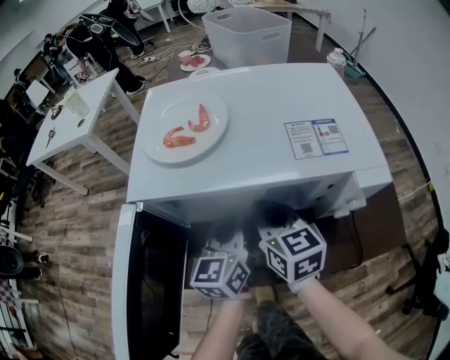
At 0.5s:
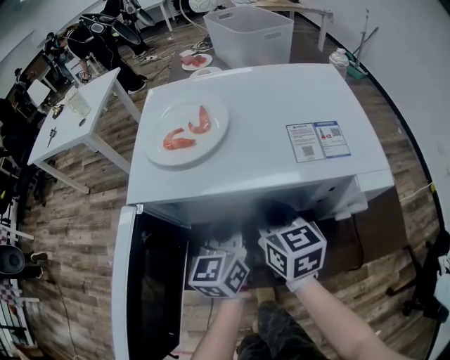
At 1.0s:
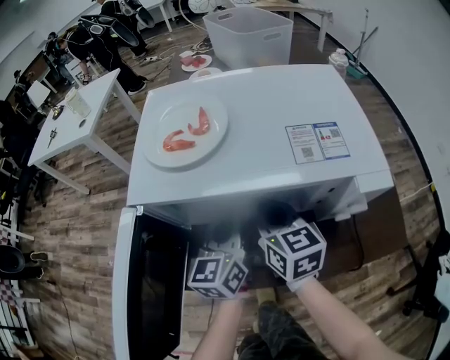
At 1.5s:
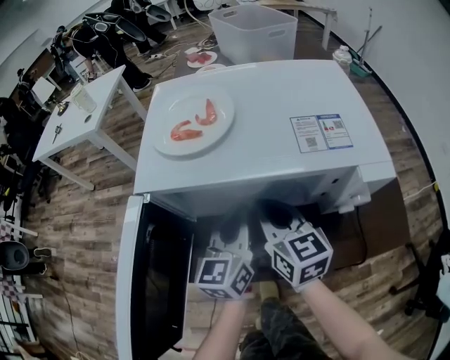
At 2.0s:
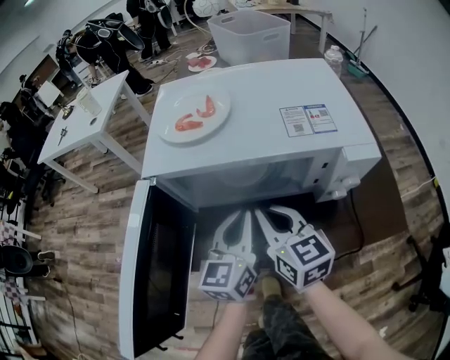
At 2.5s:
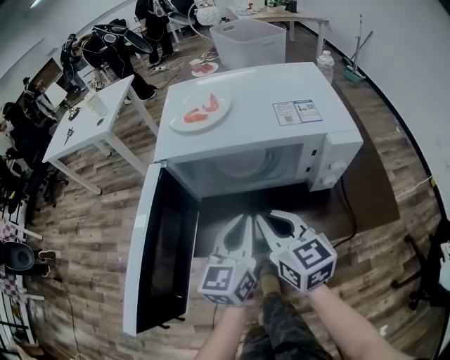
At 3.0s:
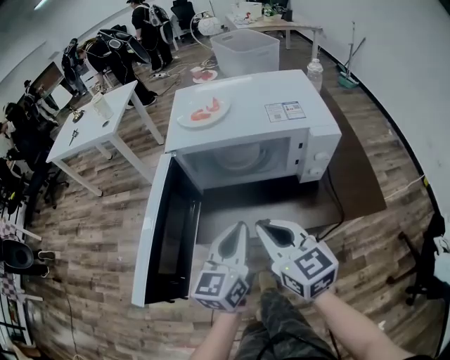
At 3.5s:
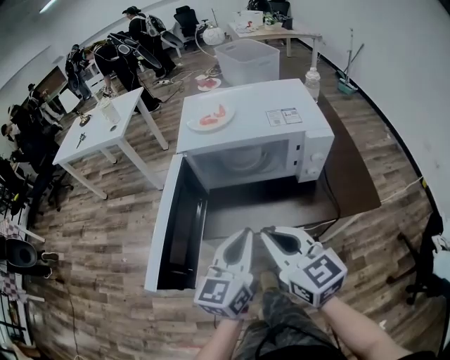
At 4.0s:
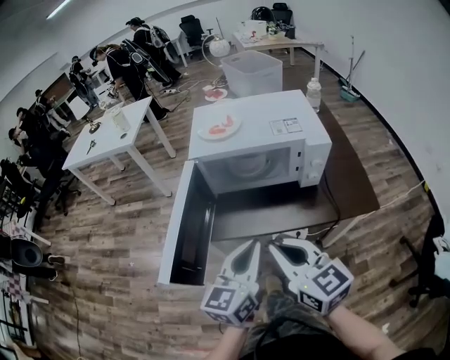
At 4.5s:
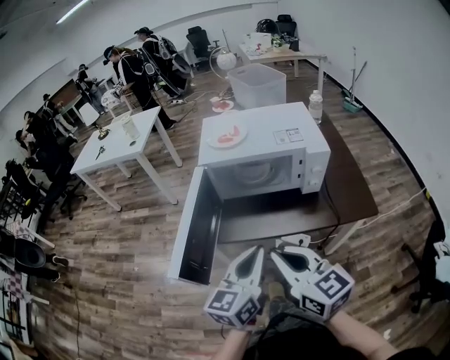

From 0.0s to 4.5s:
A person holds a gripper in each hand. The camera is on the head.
From 0.0s to 2.0s: The grippers both shift backward by roughly 5 cm.
From 2.0s to 4.5s: Both grippers travel together backward and upward, approximately 30 cm.

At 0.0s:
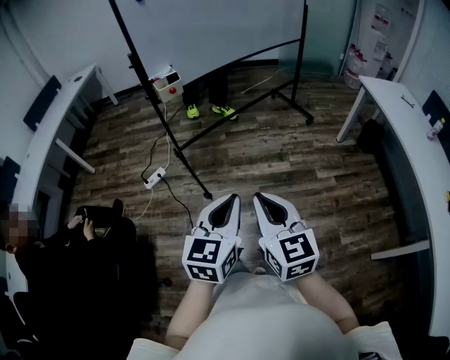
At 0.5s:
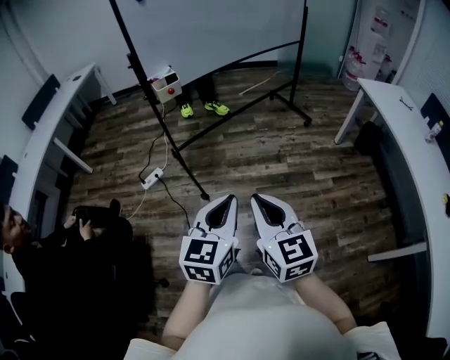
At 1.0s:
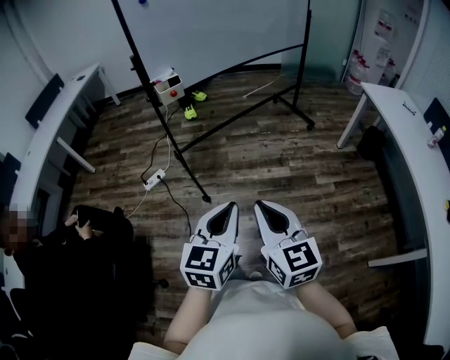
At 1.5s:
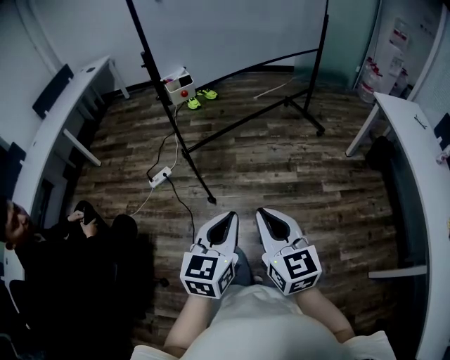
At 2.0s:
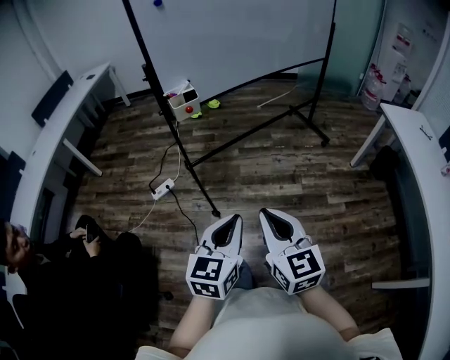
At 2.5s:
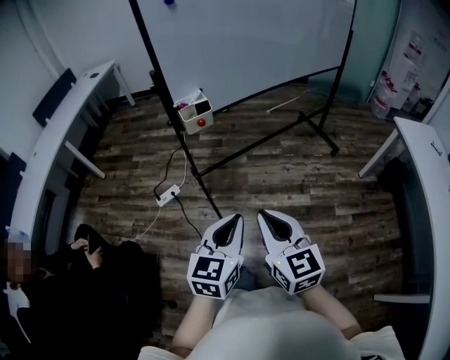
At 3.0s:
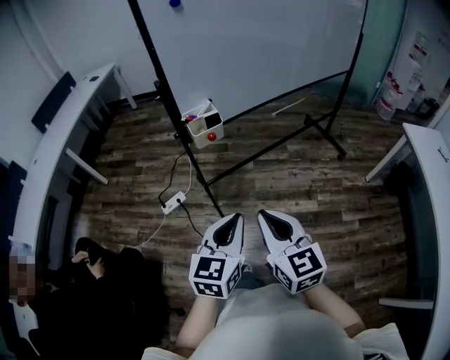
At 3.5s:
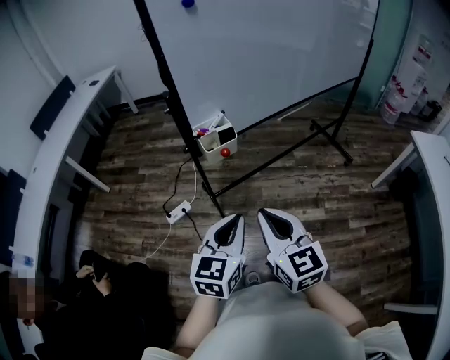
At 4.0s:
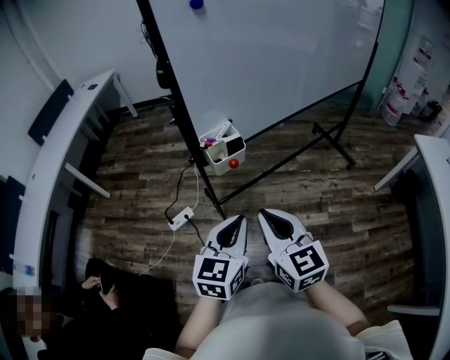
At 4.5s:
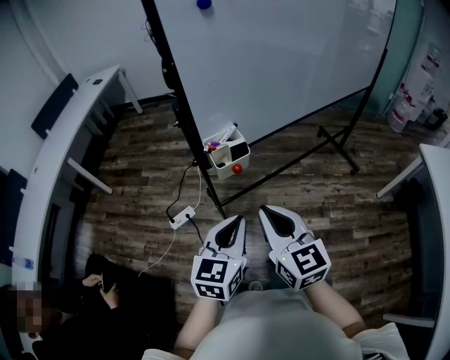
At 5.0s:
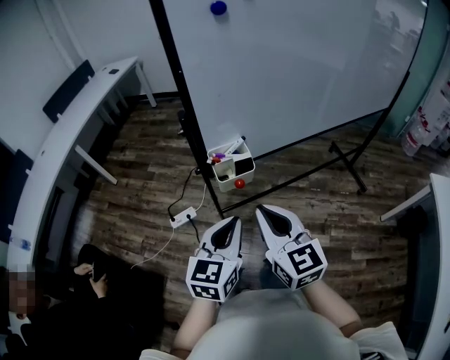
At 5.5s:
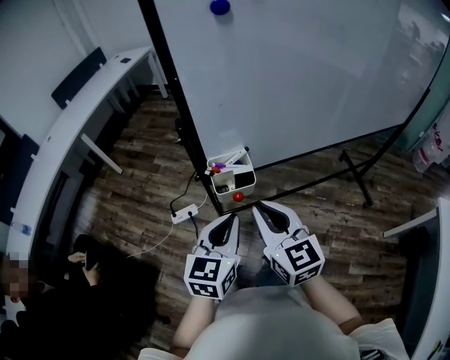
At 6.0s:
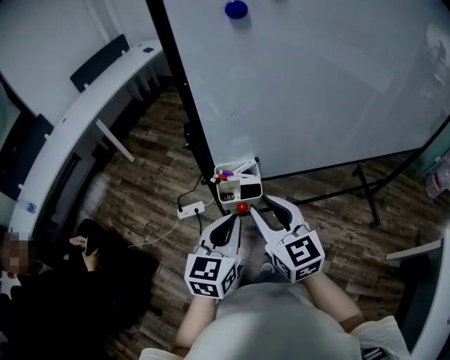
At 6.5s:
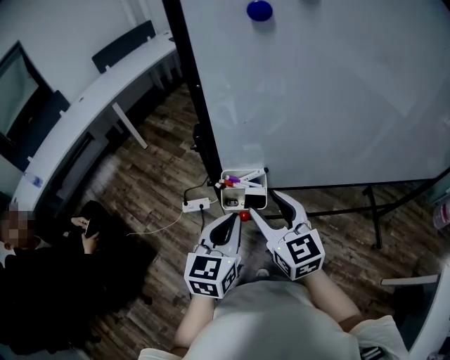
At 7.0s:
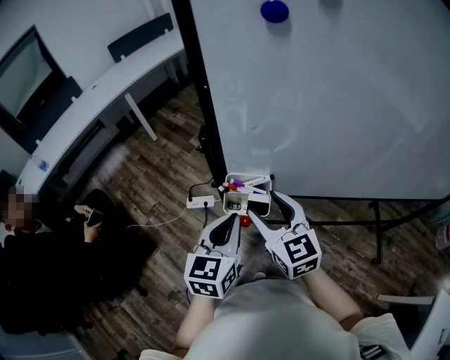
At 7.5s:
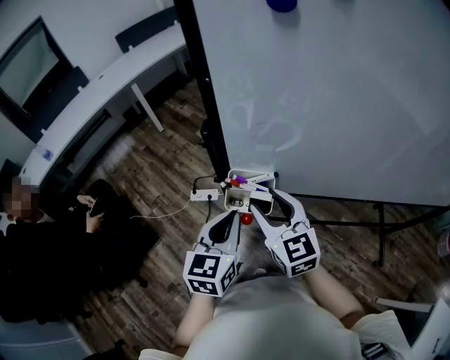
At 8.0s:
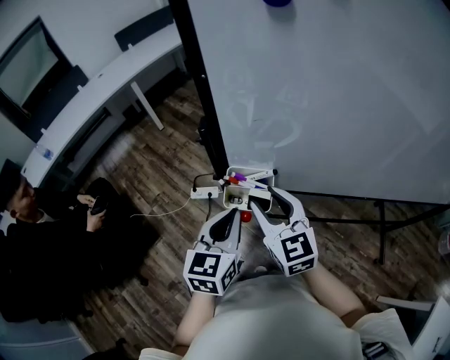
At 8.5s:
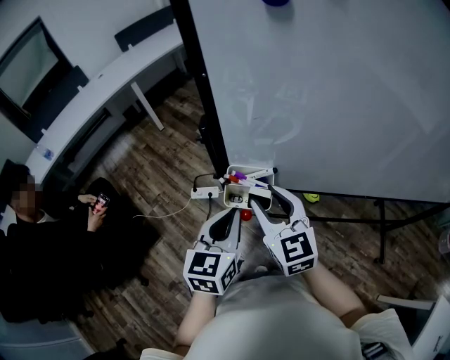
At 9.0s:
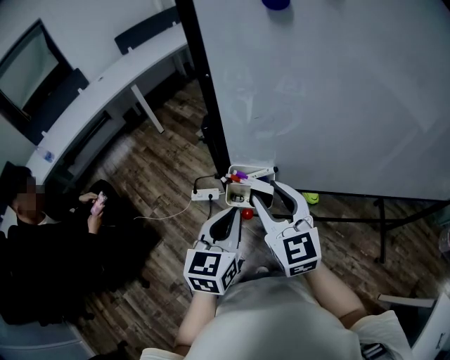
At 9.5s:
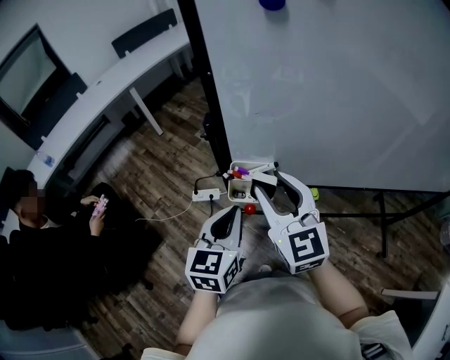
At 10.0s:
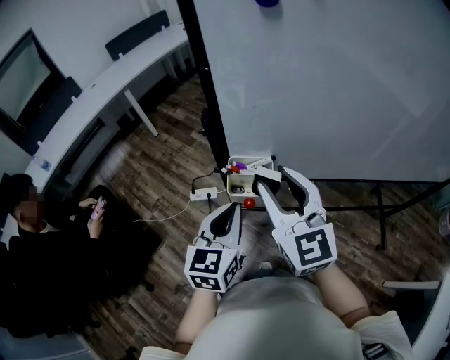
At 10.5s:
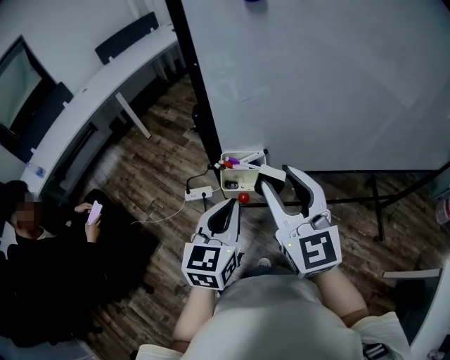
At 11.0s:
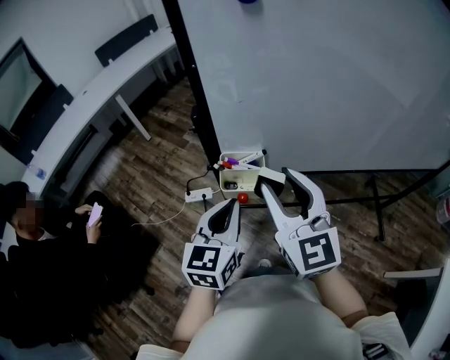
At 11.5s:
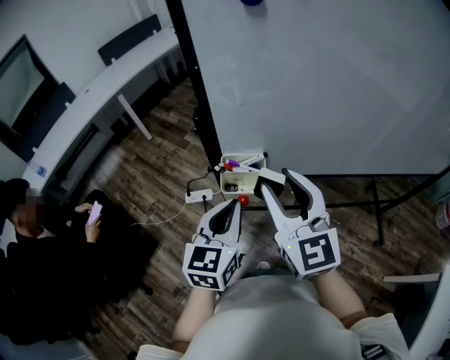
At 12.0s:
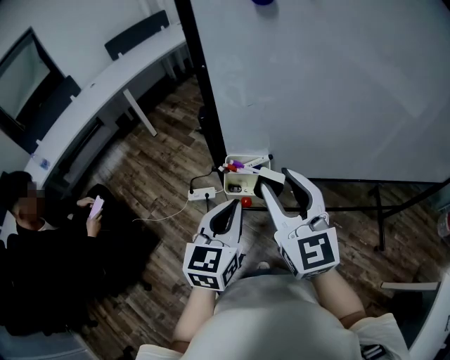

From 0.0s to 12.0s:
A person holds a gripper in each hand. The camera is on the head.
From 0.0s to 2.0s: The two grippers go approximately 10 cm forward.
From 2.0s to 4.0s: Both grippers travel together forward and to the left, some 35 cm.
From 4.0s to 6.0s: The two grippers go some 20 cm forward. The right gripper changes its angle by approximately 20 degrees, and opens its fingers, while the left gripper turns by approximately 20 degrees.
From 6.0s to 8.0s: The right gripper goes about 5 cm forward; the left gripper moves some 5 cm.
From 8.0s to 10.0s: The right gripper shifts roughly 10 cm upward.
From 10.0s to 12.0s: The grippers make only small movements.

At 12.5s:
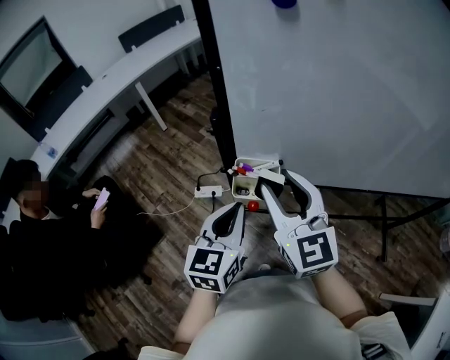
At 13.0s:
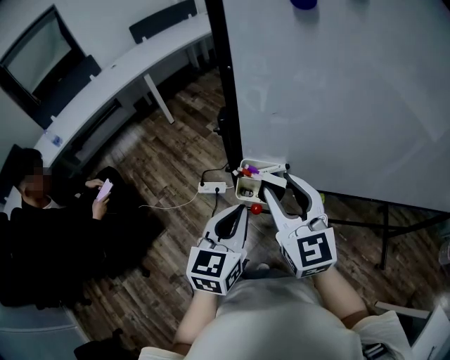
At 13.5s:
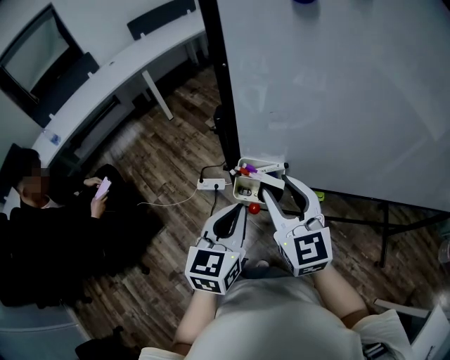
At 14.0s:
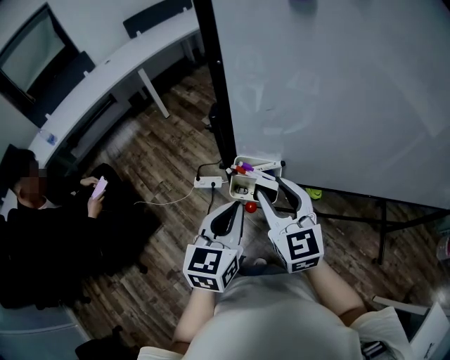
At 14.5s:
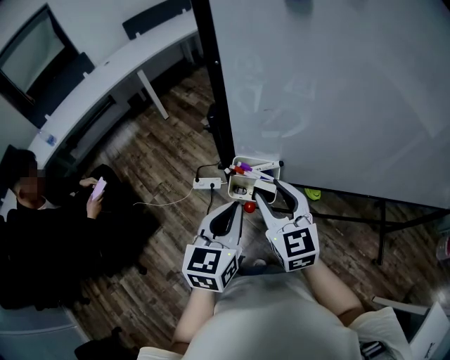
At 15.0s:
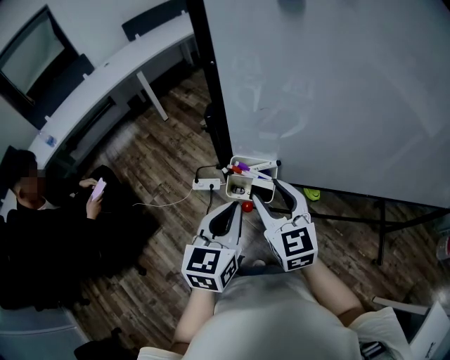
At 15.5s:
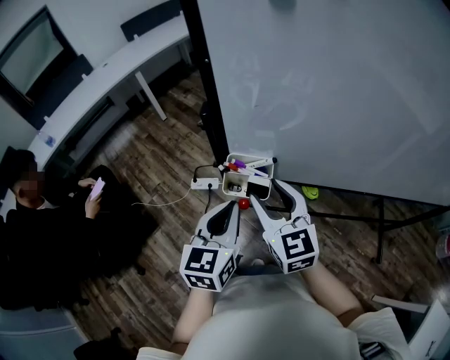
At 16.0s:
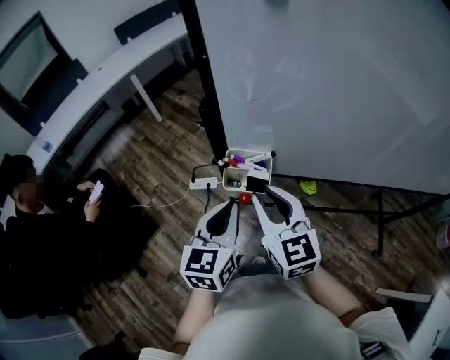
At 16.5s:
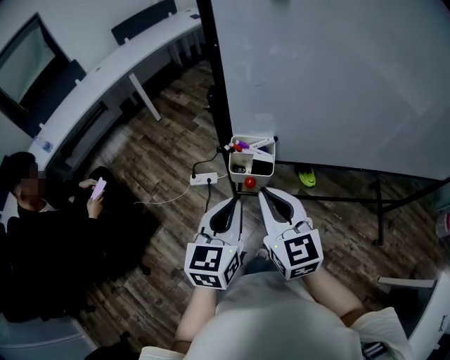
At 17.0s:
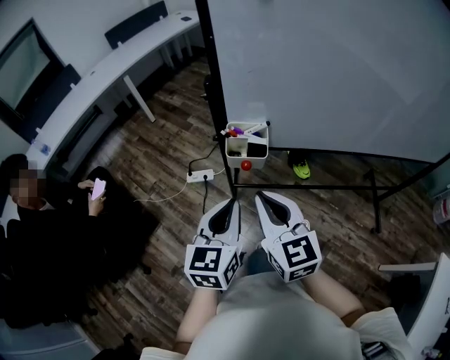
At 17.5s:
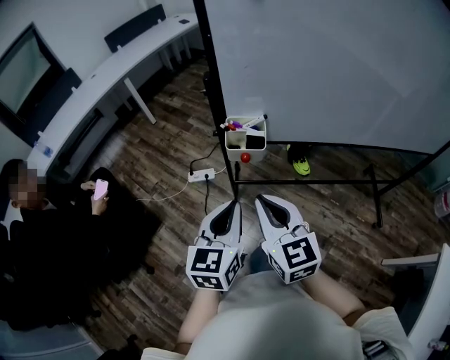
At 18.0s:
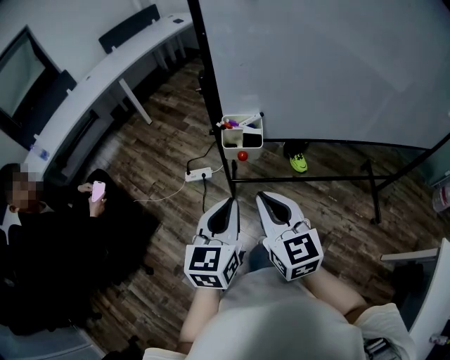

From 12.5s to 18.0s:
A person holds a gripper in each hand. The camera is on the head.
From 12.5s to 14.5s: The right gripper heads downward, covering about 10 cm.
From 14.5s to 16.0s: There are only small adjustments of the grippers.
From 16.0s to 18.0s: Both grippers move backward, approximately 15 cm. The right gripper closes its fingers.

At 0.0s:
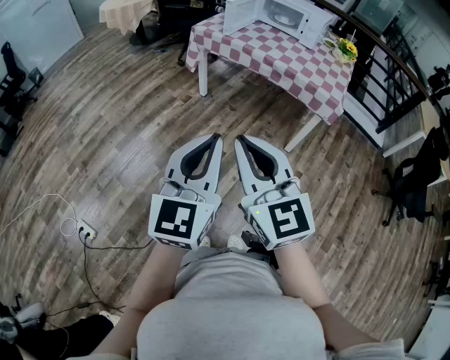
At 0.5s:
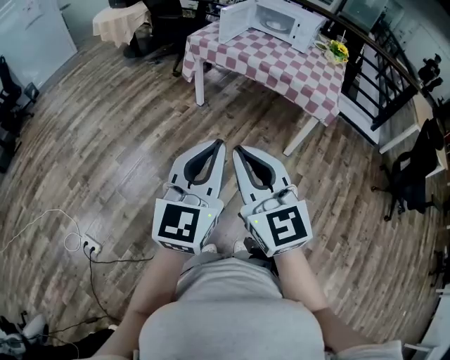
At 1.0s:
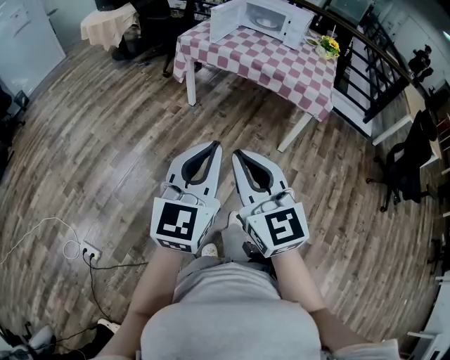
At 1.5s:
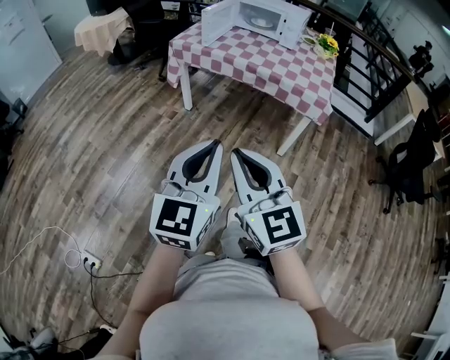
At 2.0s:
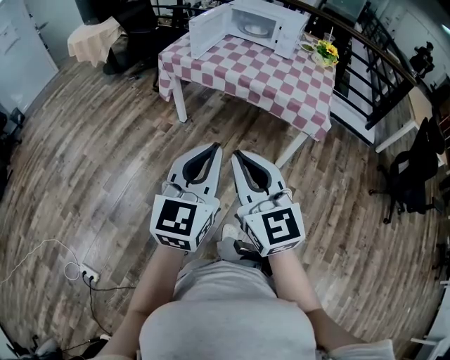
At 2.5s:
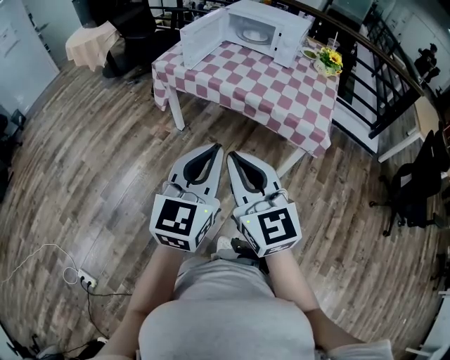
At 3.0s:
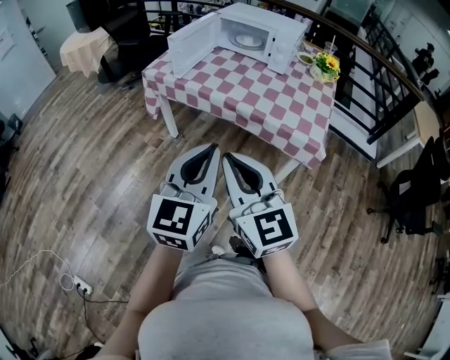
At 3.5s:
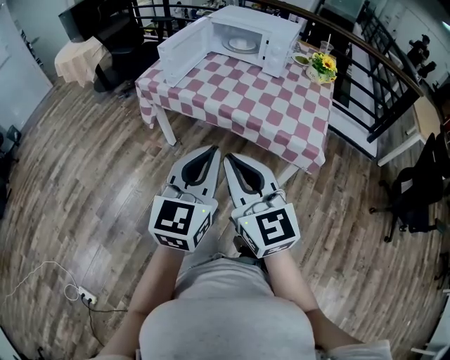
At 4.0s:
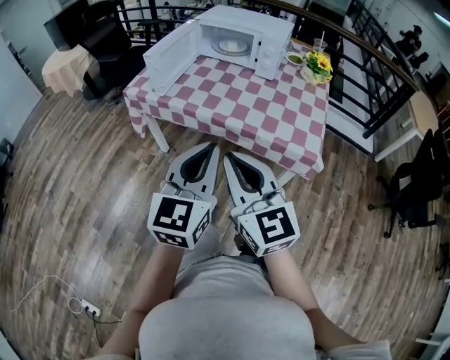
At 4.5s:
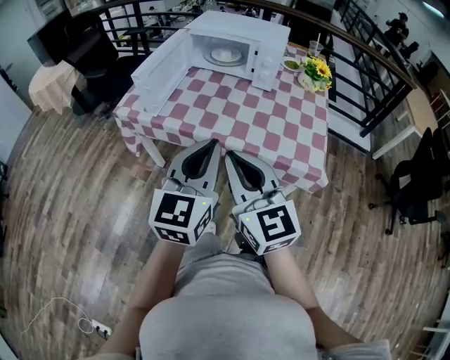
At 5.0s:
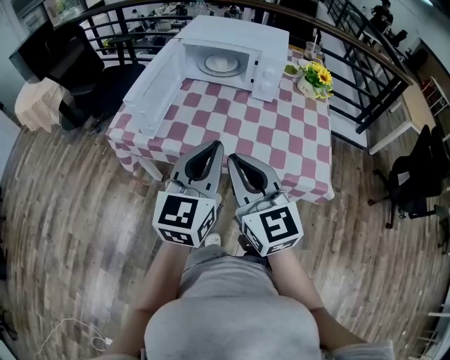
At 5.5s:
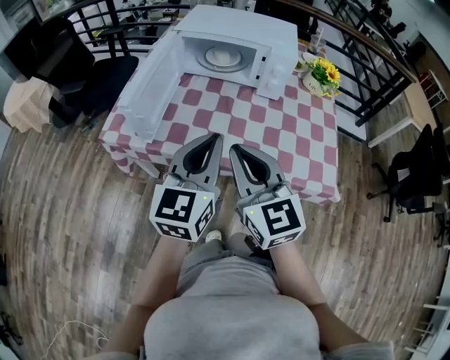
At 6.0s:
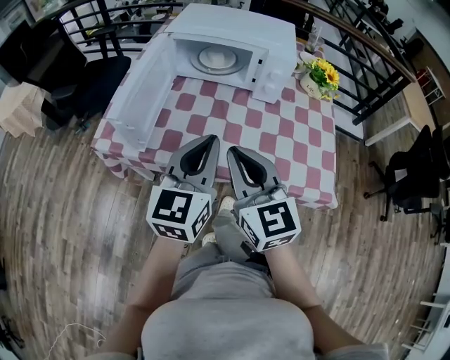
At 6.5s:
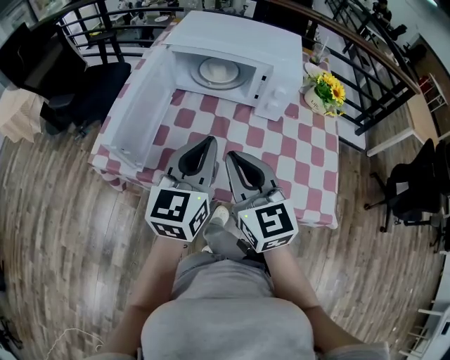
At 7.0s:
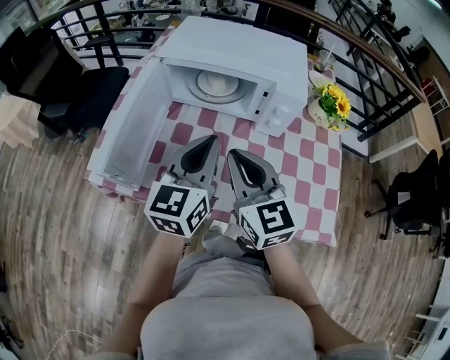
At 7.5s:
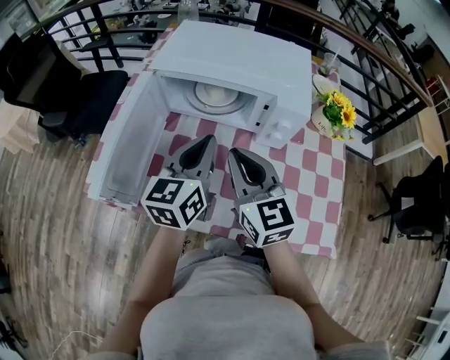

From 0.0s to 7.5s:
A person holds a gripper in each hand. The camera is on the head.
From 0.0s to 2.0s: The two grippers go some 15 cm forward.
From 2.0s to 4.0s: The grippers both shift forward and to the right by about 30 cm.
From 4.0s to 5.5s: The two grippers go roughly 25 cm forward.
From 5.5s to 7.5s: The two grippers go some 25 cm forward.
